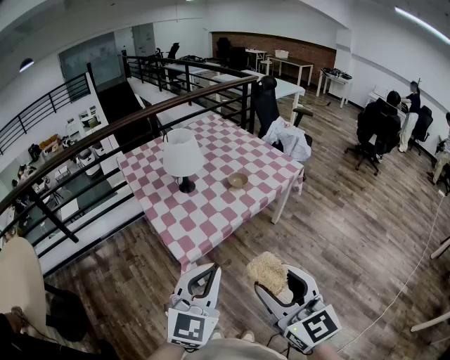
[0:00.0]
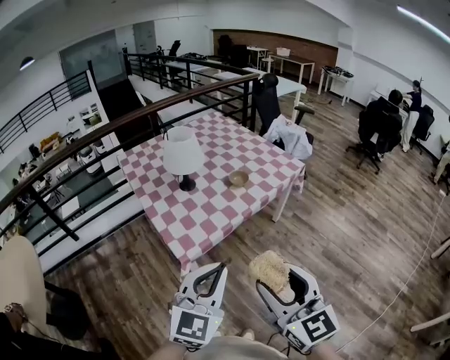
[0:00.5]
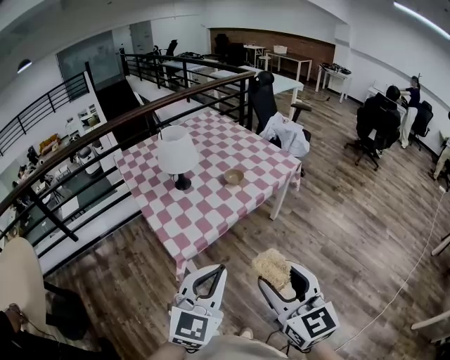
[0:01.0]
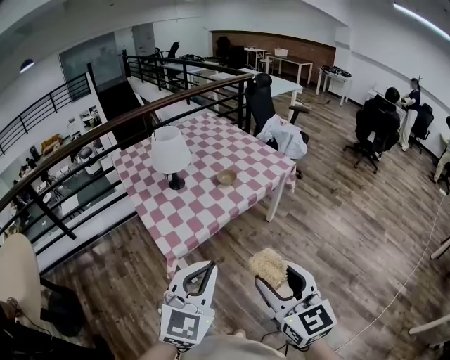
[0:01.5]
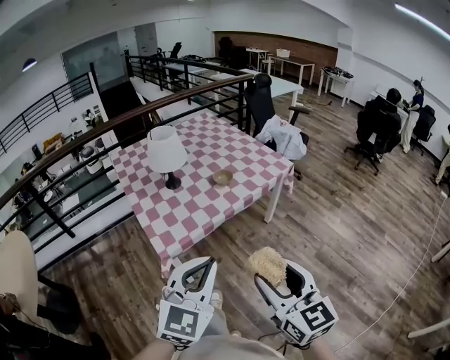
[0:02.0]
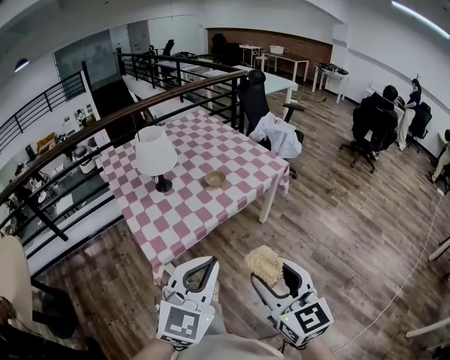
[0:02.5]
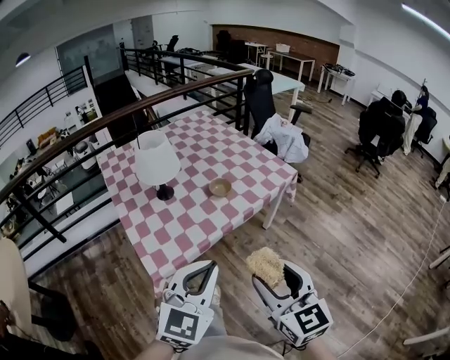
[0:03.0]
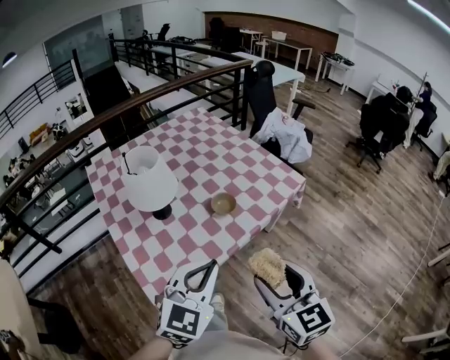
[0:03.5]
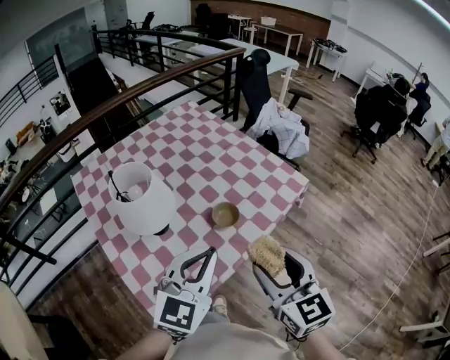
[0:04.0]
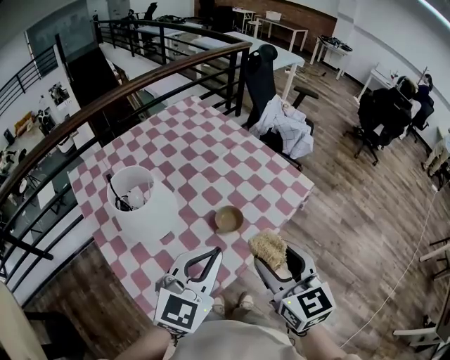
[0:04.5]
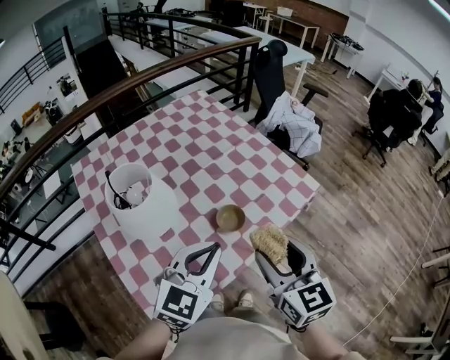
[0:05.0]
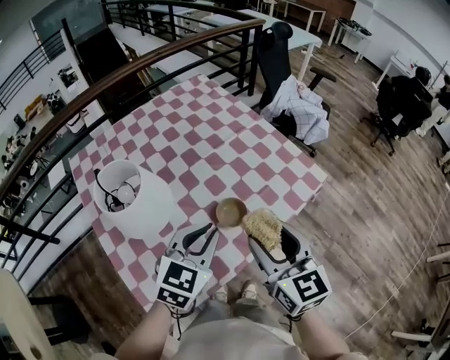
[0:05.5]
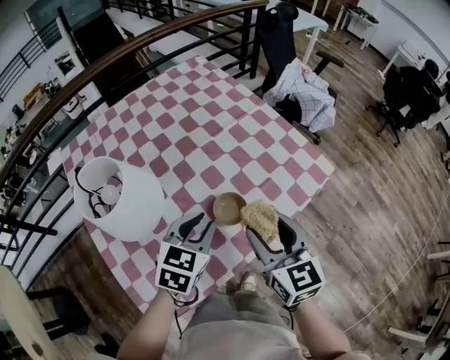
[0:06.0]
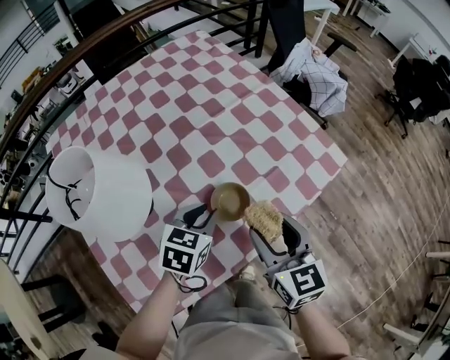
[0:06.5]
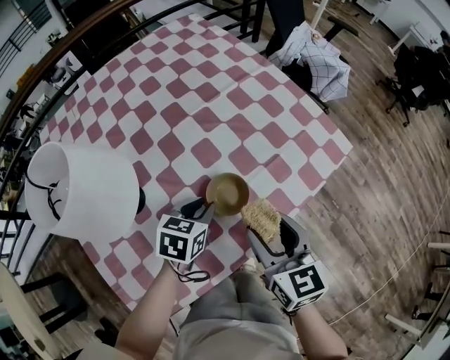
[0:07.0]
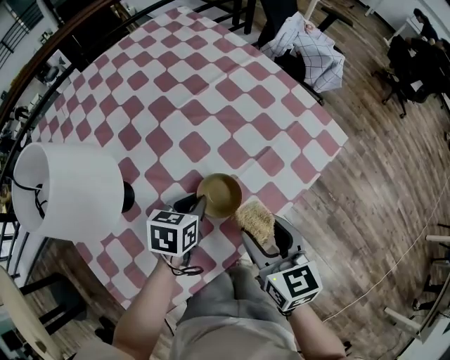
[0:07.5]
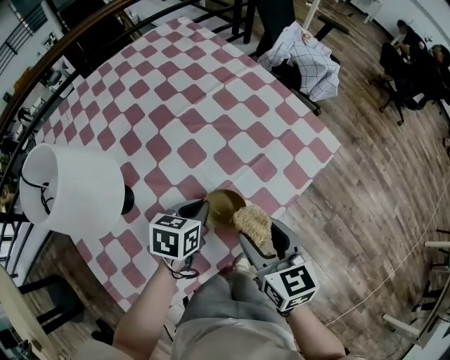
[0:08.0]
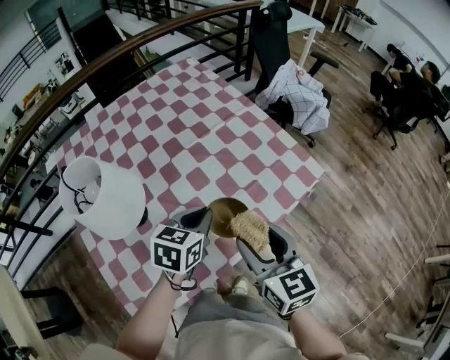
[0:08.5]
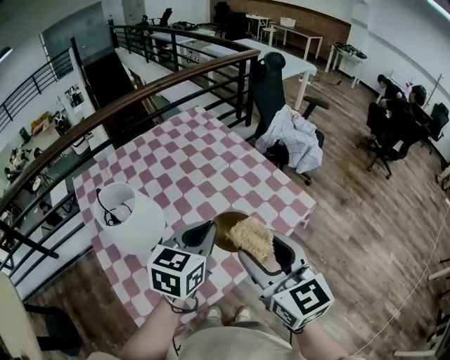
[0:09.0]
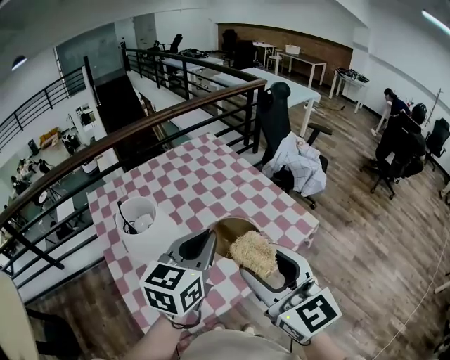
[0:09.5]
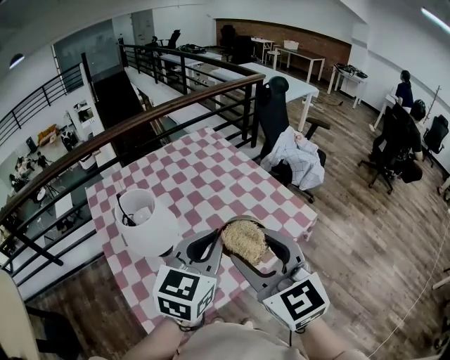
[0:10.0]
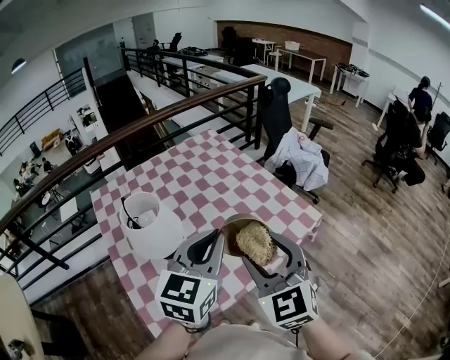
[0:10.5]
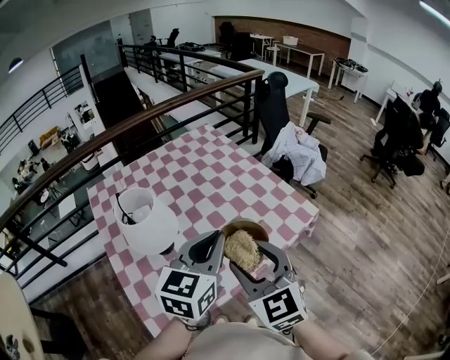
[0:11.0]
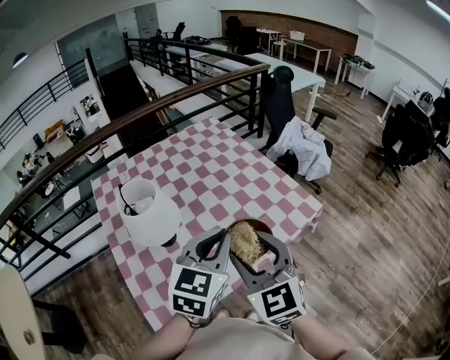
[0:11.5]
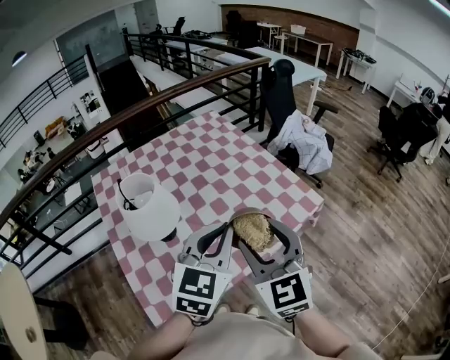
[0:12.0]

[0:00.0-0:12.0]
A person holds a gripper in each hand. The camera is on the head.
0:00.0 to 0:02.0: Both grippers travel together to the right, roughly 10 cm.
0:02.0 to 0:04.0: The two grippers travel together, forward, roughly 40 cm.
0:04.0 to 0:06.0: The grippers both shift forward and downward by some 25 cm. The left gripper swivels about 30 degrees, and opens up.
0:06.0 to 0:08.0: The grippers both shift downward by about 15 cm. The left gripper rotates some 20 degrees.
0:08.0 to 0:10.0: Both grippers move upward, about 35 cm. The left gripper angles its fingers upward, by approximately 30 degrees. The right gripper changes its angle by about 30 degrees.
0:10.0 to 0:12.0: The right gripper is displaced downward by some 5 cm.

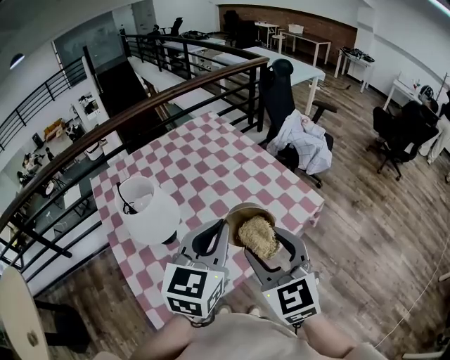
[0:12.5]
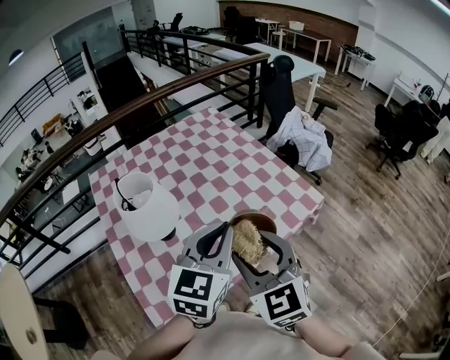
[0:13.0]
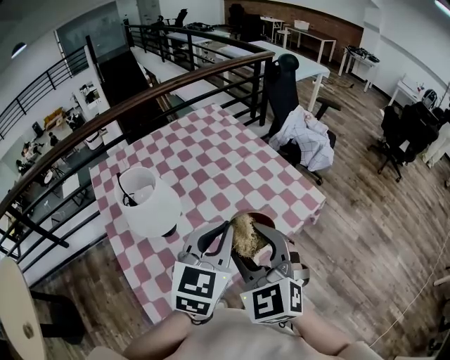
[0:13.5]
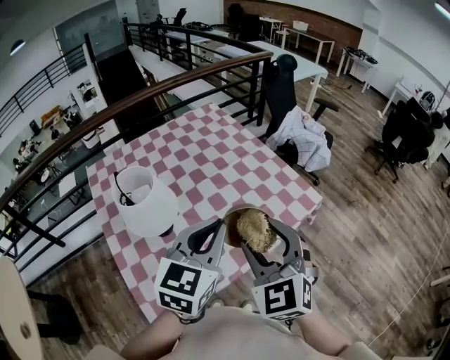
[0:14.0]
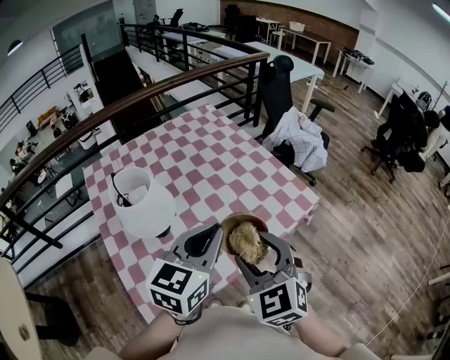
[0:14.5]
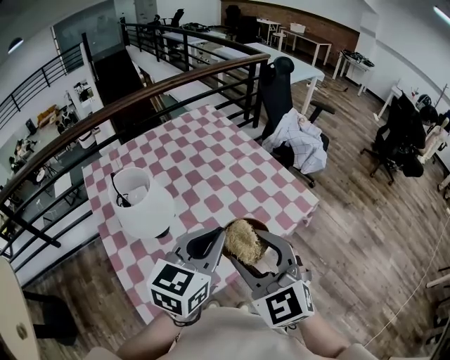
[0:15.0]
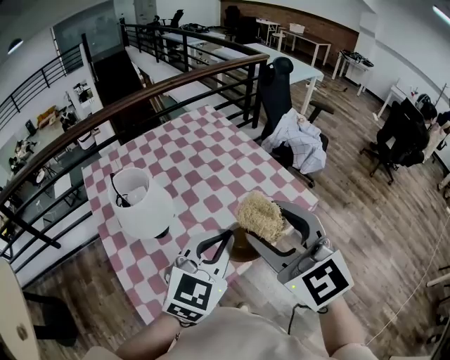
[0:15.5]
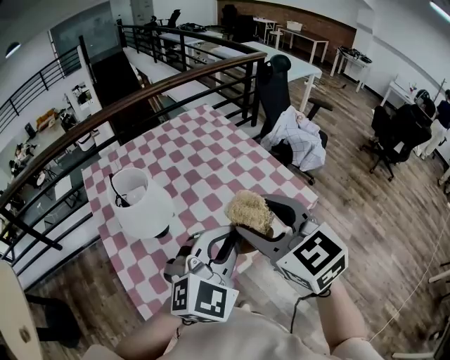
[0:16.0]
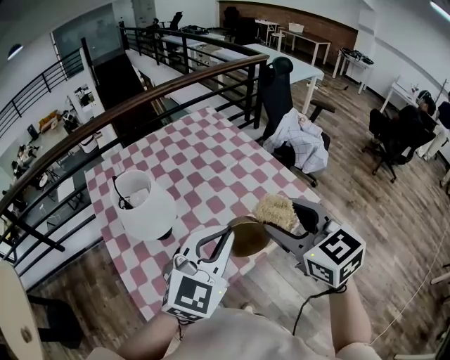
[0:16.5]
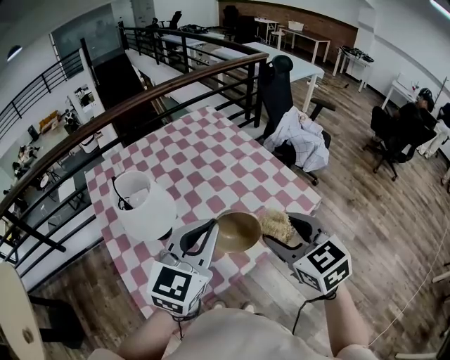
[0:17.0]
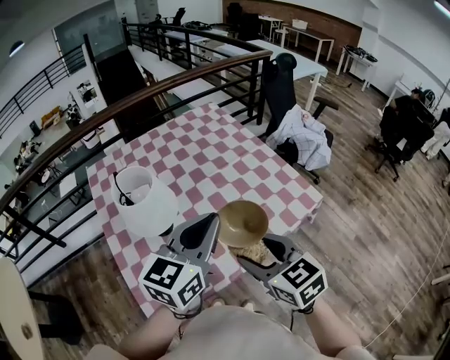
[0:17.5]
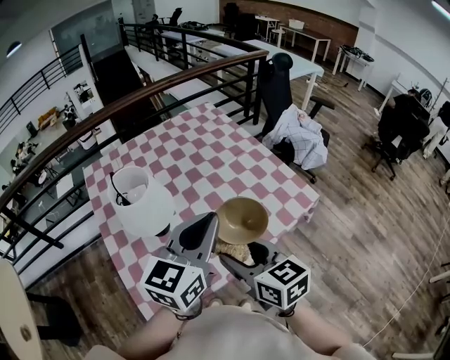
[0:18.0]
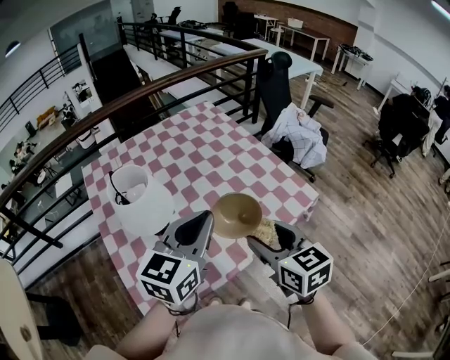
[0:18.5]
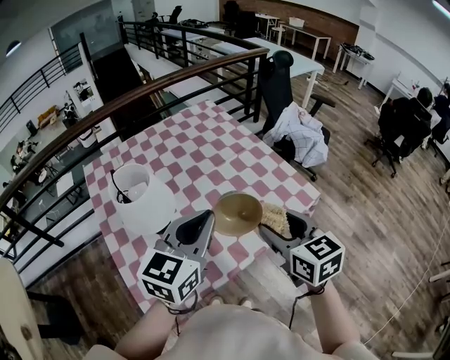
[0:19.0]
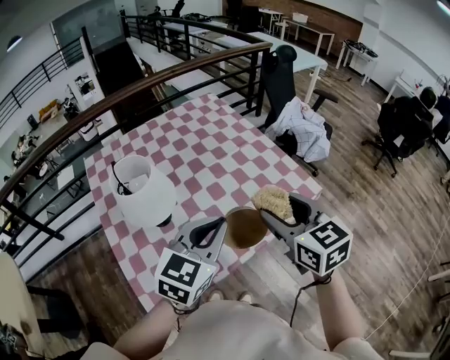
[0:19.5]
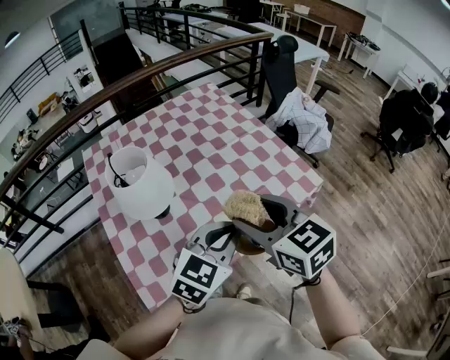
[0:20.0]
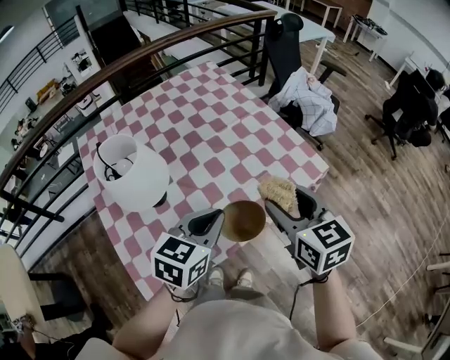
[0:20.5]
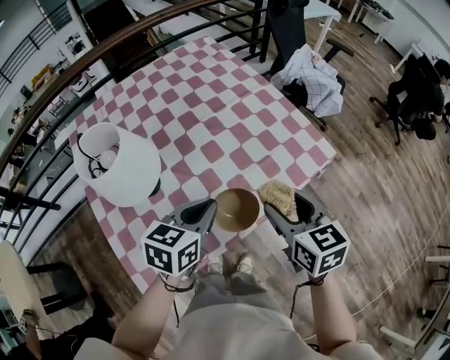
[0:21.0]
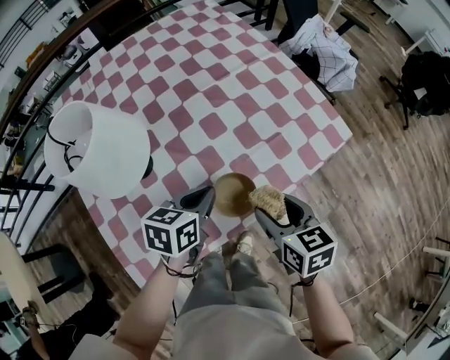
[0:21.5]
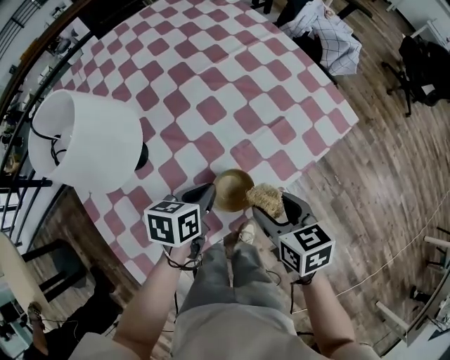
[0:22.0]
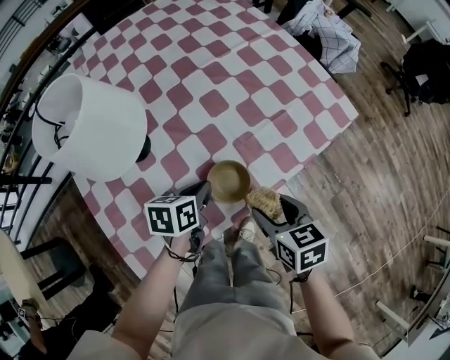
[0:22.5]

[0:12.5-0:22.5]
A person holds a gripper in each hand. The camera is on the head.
0:12.5 to 0:14.5: The grippers make only small movements.
0:14.5 to 0:16.5: The right gripper shifts approximately 10 cm upward and to the right, and turns by approximately 20 degrees, while the left gripper turns by approximately 30 degrees.
0:16.5 to 0:18.5: The left gripper moves approximately 5 cm, and swivels roughly 30 degrees; the right gripper heads downward, covering some 10 cm.
0:18.5 to 0:20.5: The right gripper shifts by roughly 5 cm. Meanwhile the left gripper shifts roughly 10 cm downward, and swivels about 20 degrees.
0:20.5 to 0:22.5: Both grippers move downward, approximately 25 cm. The right gripper rotates some 30 degrees. Meanwhile the left gripper changes its angle by roughly 40 degrees.

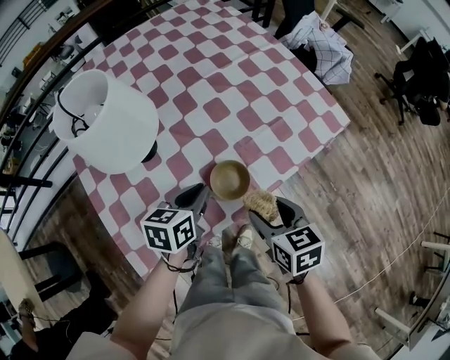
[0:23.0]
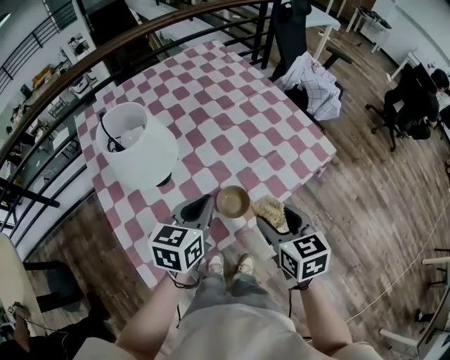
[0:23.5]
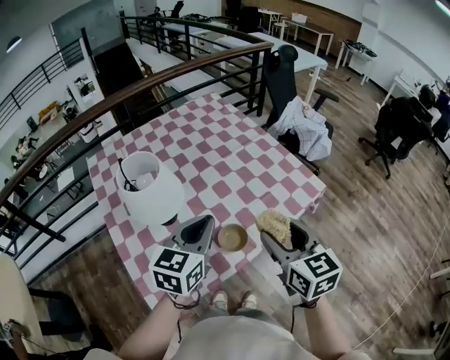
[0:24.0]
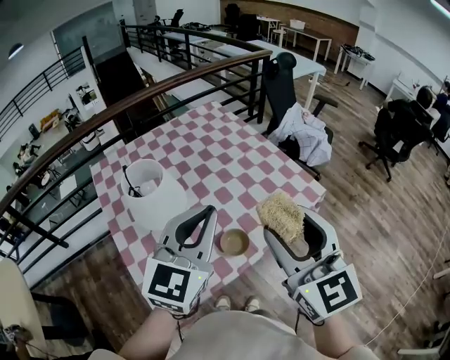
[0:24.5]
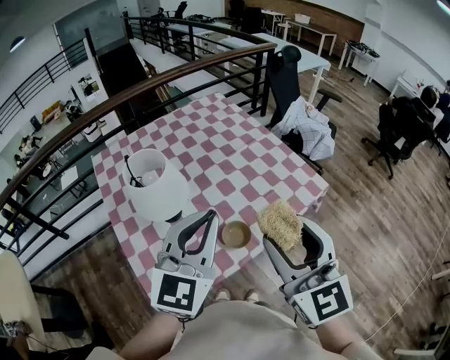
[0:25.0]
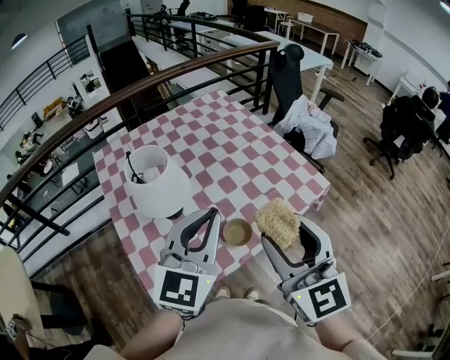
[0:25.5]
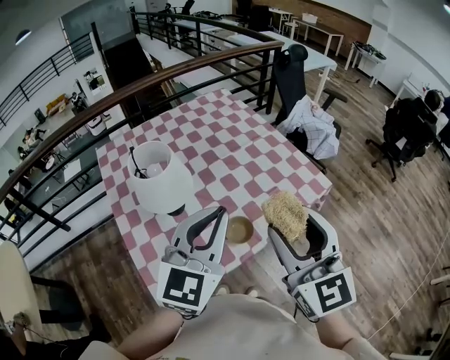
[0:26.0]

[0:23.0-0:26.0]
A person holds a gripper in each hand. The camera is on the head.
0:23.0 to 0:24.5: The grippers both shift upward by roughly 35 cm. The right gripper points its fingers roughly 40 degrees further upward. Meanwhile the left gripper tilts its fingers about 30 degrees upward.
0:24.5 to 0:26.0: The grippers move only a little.

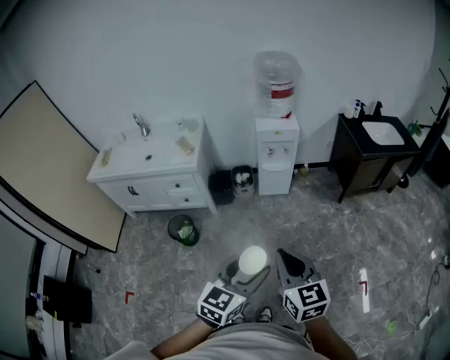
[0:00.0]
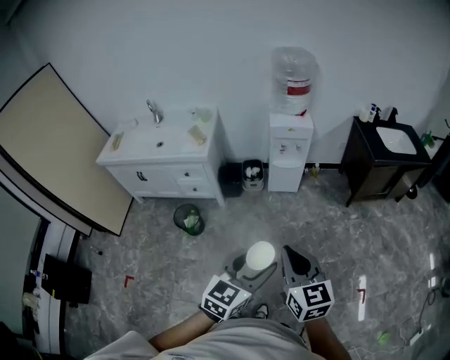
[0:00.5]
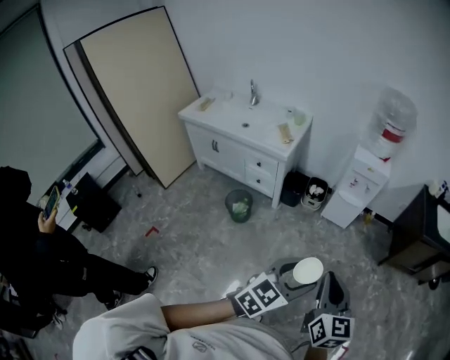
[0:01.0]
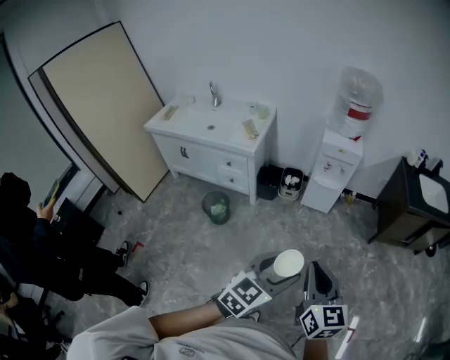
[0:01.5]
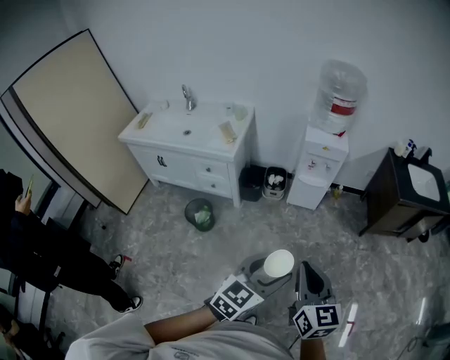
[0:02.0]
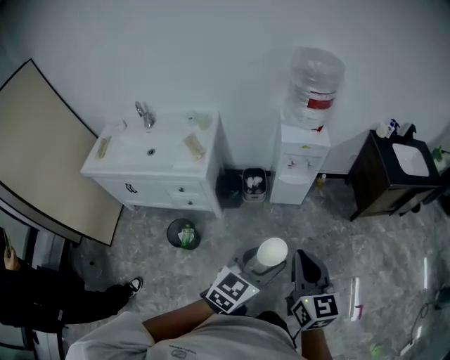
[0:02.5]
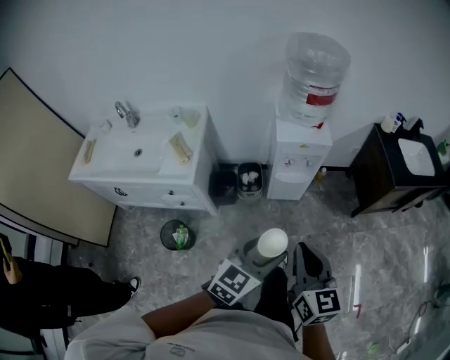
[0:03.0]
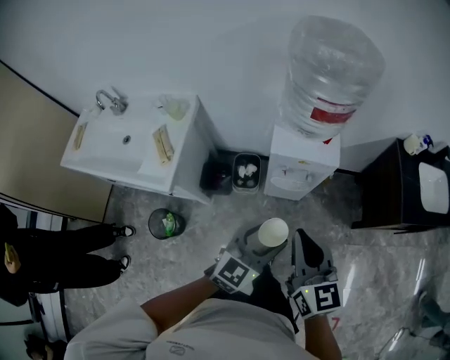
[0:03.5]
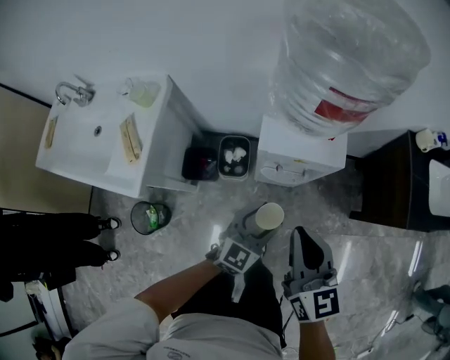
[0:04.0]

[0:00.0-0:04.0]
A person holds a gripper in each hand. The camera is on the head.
0:00.0 to 0:02.0: The two grippers go about 10 cm forward.
0:02.0 to 0:04.0: The two grippers travel together, forward, approximately 60 cm.
